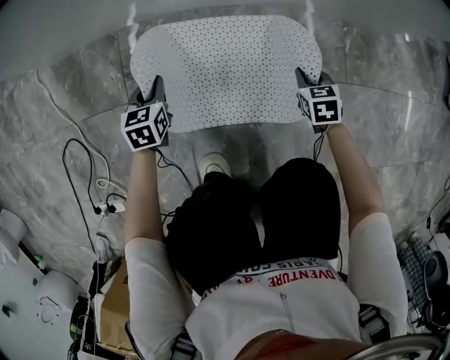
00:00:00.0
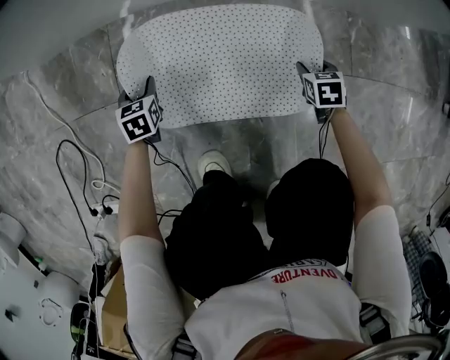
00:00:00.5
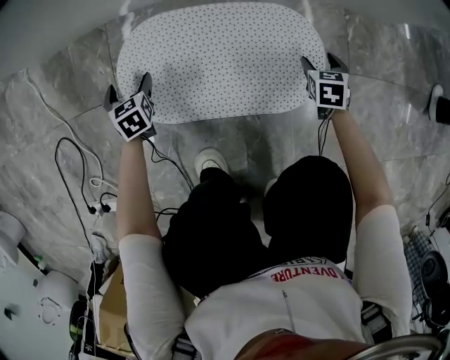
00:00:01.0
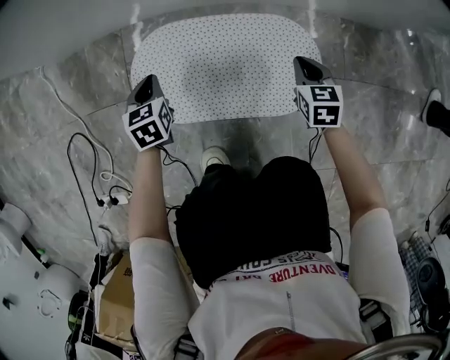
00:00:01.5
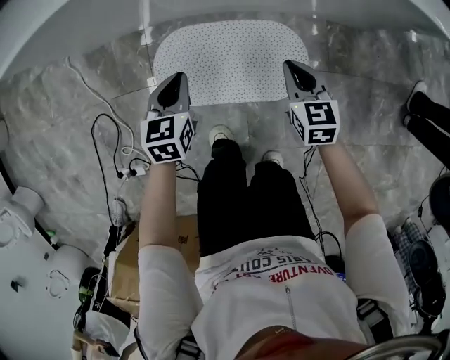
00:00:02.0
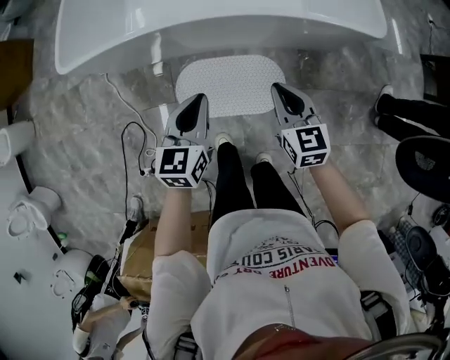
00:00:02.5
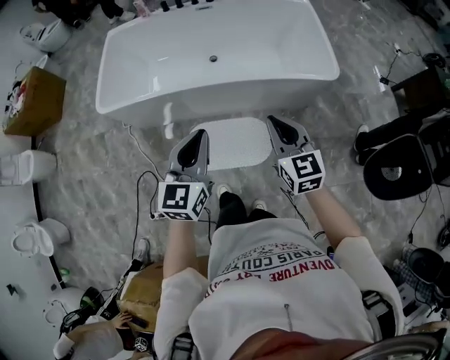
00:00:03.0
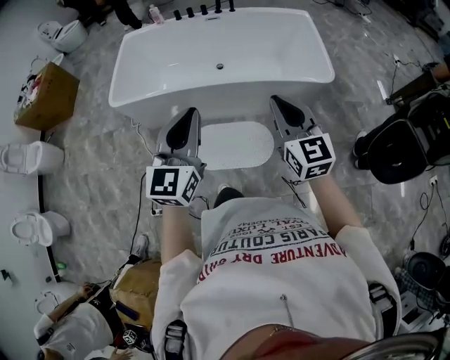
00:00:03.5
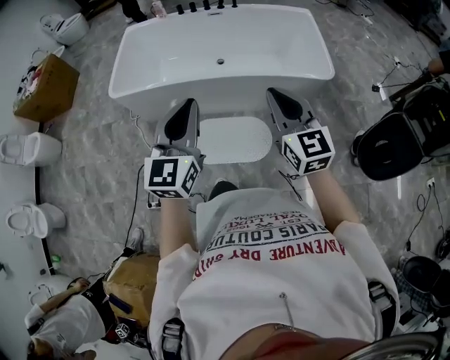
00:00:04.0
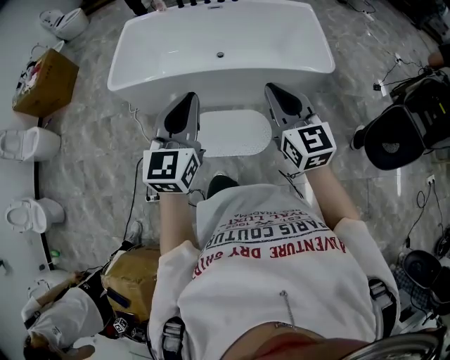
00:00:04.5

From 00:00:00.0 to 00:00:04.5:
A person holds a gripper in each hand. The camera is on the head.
From 00:00:00.0 to 00:00:02.0: The two grippers go approximately 30 cm upward. The left gripper opens and closes again, while the right gripper rotates about 20 degrees, and opens, then closes again.
From 00:00:02.0 to 00:00:04.5: The grippers both shift upward by roughly 70 cm. The right gripper tips its fingers upward by approximately 30 degrees, while the left gripper tilts its fingers roughly 40 degrees upward.

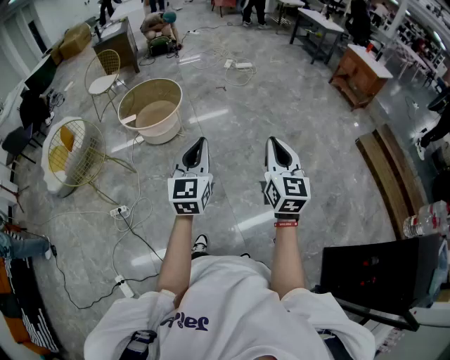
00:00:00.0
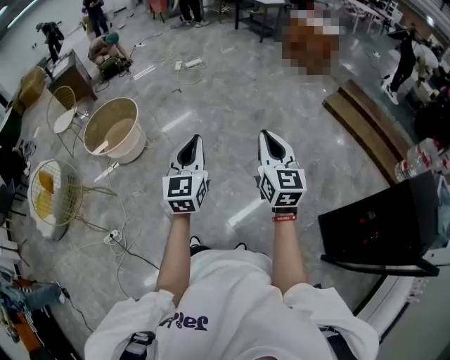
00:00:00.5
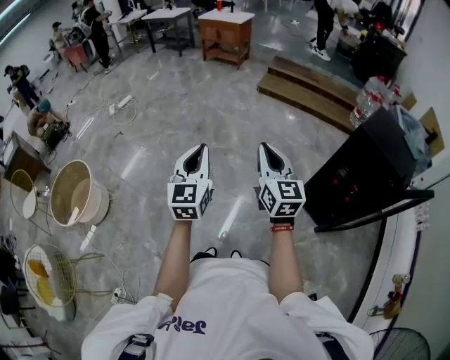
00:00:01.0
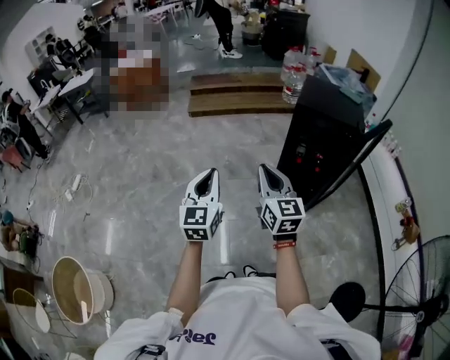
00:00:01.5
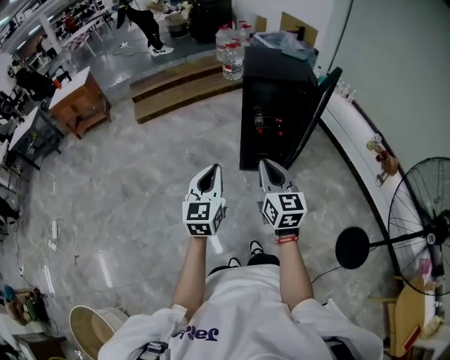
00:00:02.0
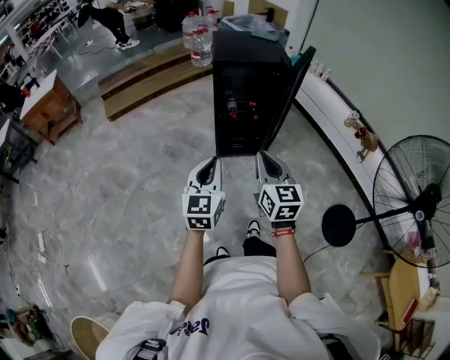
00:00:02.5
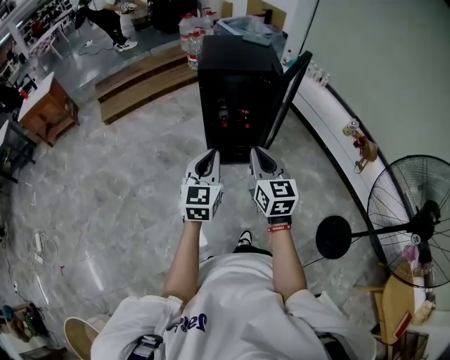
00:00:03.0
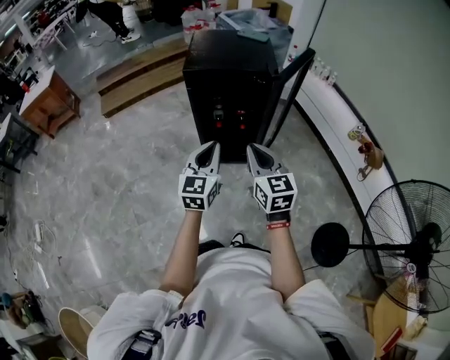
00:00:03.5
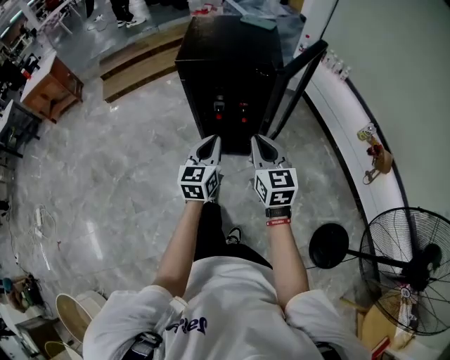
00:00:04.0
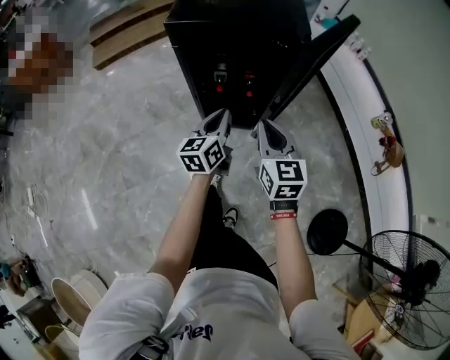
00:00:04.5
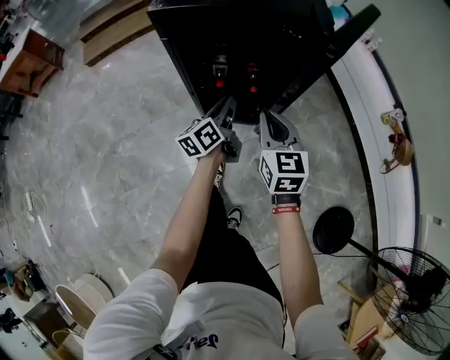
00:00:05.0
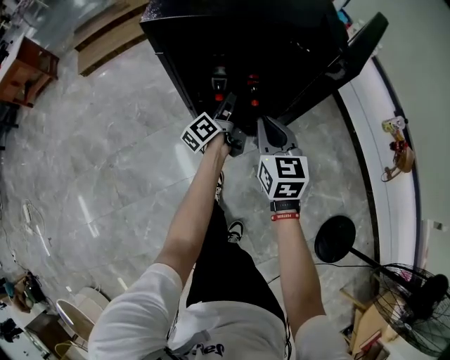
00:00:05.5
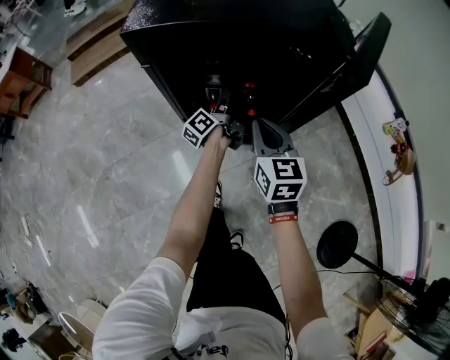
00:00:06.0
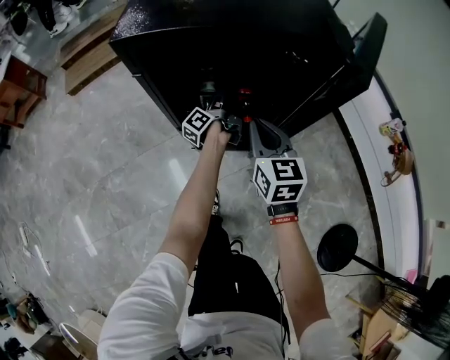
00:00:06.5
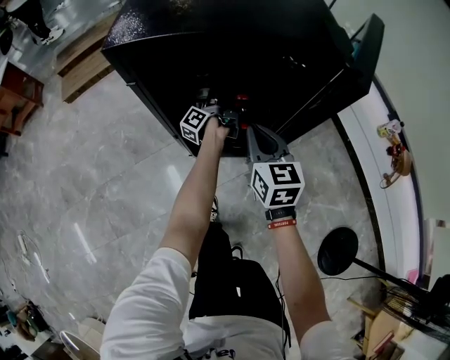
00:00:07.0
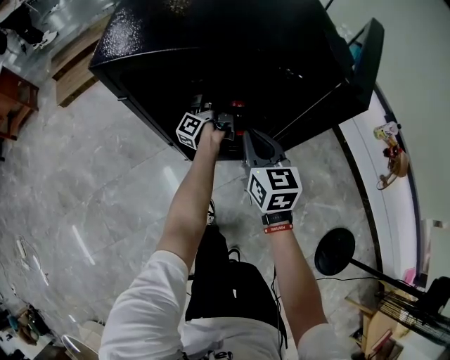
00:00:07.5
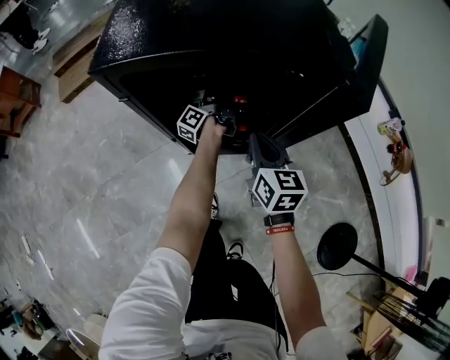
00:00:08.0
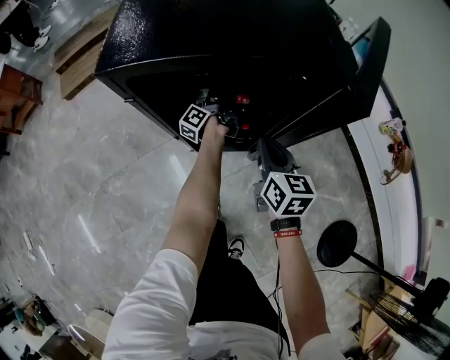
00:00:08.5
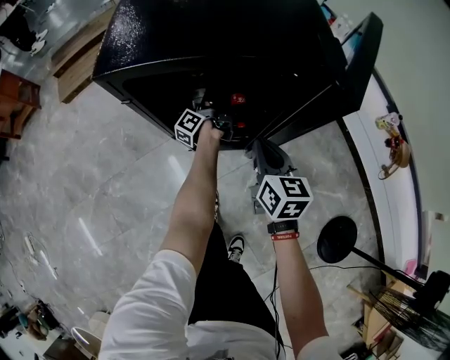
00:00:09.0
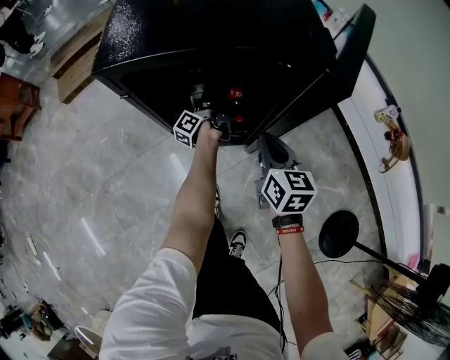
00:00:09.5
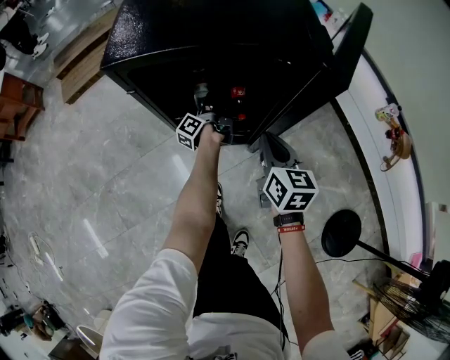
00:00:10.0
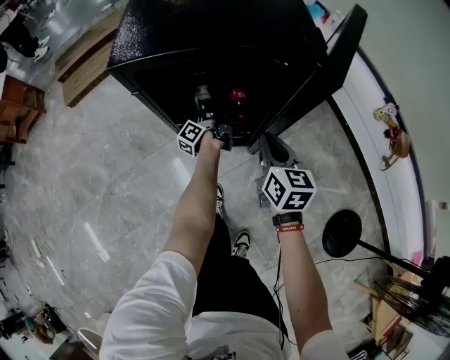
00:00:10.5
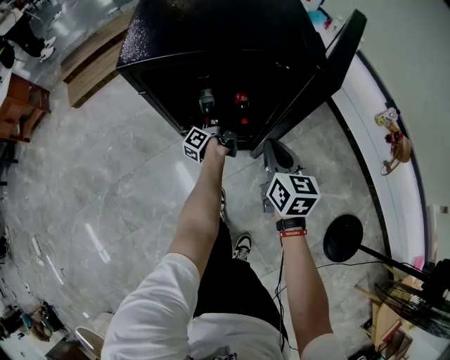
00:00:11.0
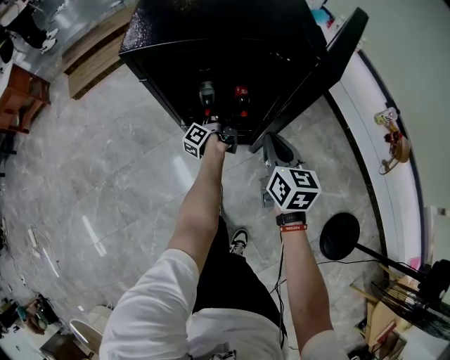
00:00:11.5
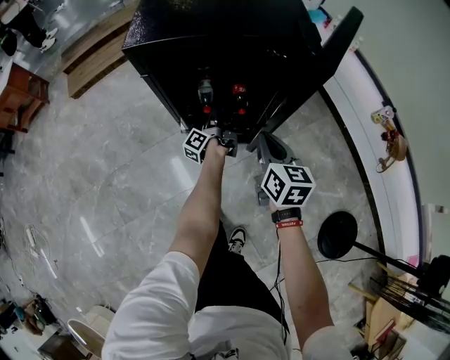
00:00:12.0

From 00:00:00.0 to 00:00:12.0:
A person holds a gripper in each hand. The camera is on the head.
From 00:00:00.0 to 00:00:02.0: The two grippers travel together, about 50 cm. The left gripper turns by about 90 degrees, while the right gripper rotates roughly 80 degrees.
From 00:00:02.0 to 00:00:04.0: Both grippers travel together forward, to the right and downward, roughly 40 cm.
From 00:00:04.0 to 00:00:06.0: The right gripper moves downward and forward, some 35 cm. Meanwhile the left gripper goes roughly 50 cm forward and downward, twists roughly 70 degrees counterclockwise, seen from behind, and opens.
From 00:00:06.0 to 00:00:08.0: The left gripper moves forward, approximately 10 cm, and closes its fingers; the right gripper moves approximately 5 cm.
From 00:00:08.0 to 00:00:10.0: The grippers both shift backward by approximately 5 cm.
From 00:00:10.0 to 00:00:12.0: The left gripper heads backward, covering roughly 10 cm. Meanwhile the right gripper is displaced backward by approximately 5 cm.

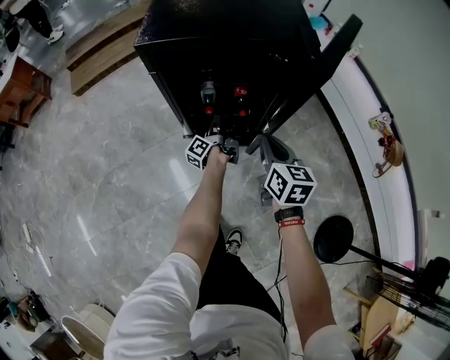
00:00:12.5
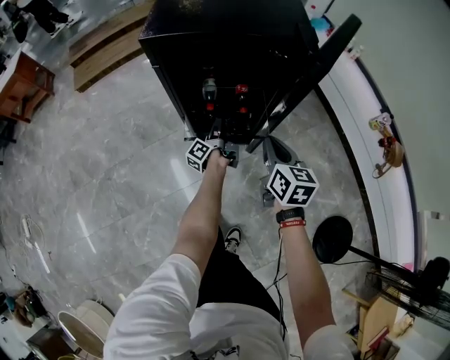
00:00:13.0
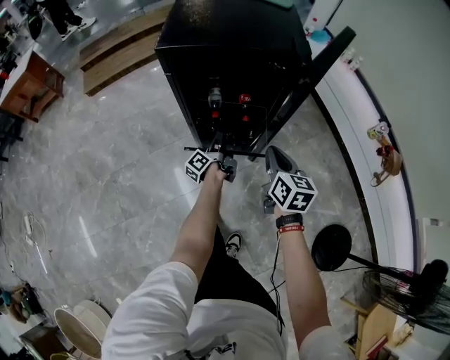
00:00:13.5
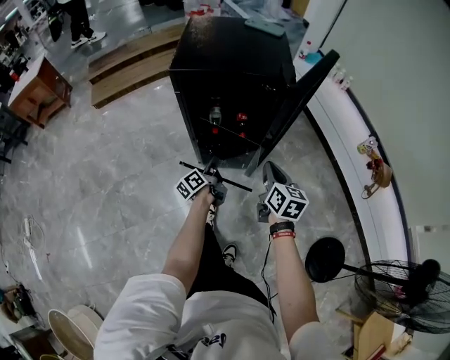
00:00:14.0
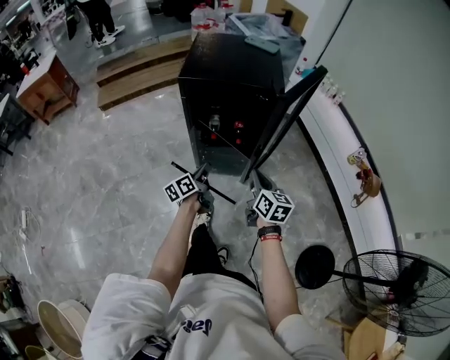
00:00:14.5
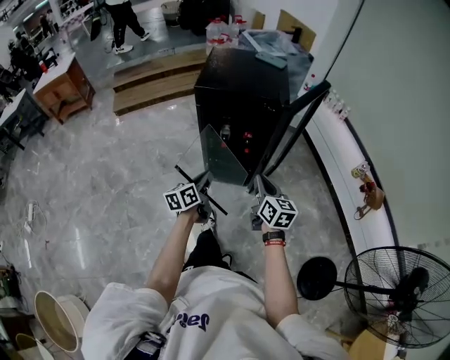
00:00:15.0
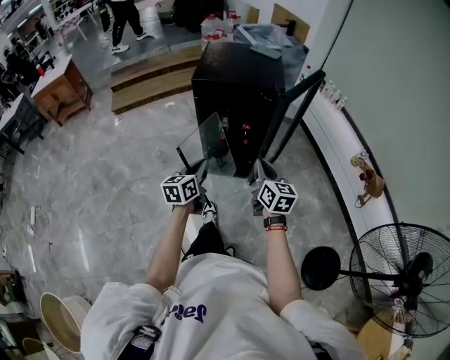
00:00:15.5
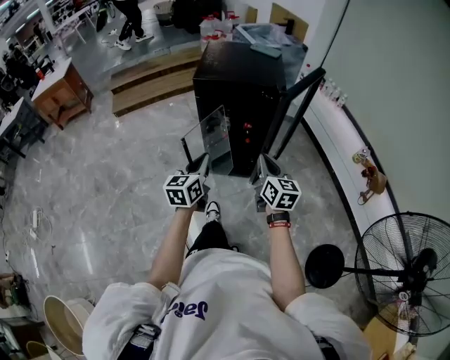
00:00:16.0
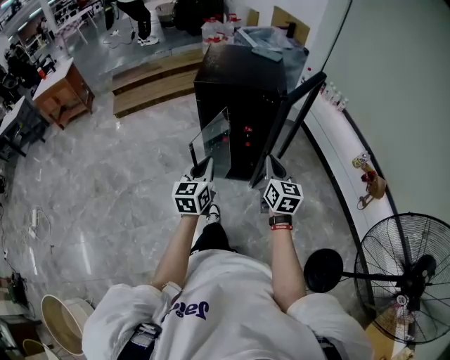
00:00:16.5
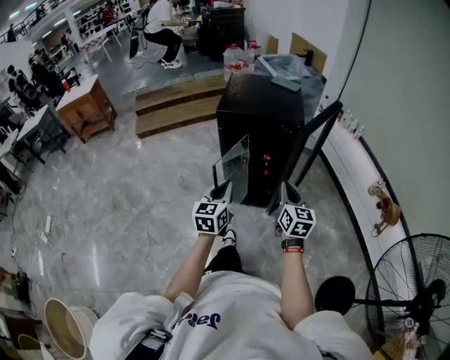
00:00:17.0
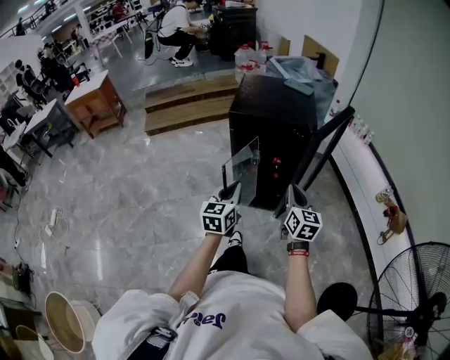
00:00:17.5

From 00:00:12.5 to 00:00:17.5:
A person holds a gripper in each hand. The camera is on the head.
From 00:00:12.5 to 00:00:15.0: The right gripper heads backward and upward, covering approximately 25 cm. The left gripper heads backward and upward, covering about 40 cm, and twists roughly 50 degrees clockwise, seen from behind.
From 00:00:15.0 to 00:00:17.5: The right gripper heads upward, covering roughly 5 cm. Meanwhile the left gripper is displaced upward by roughly 10 cm, and swivels approximately 30 degrees.

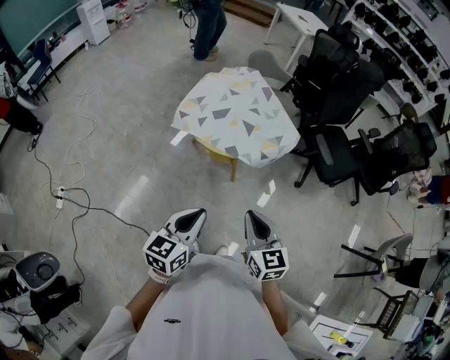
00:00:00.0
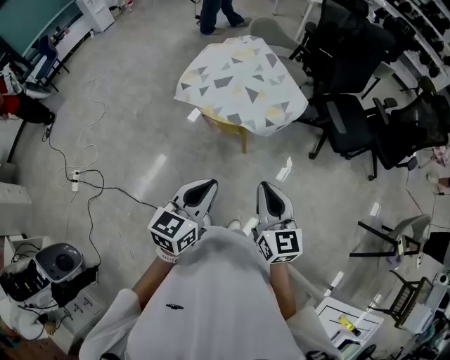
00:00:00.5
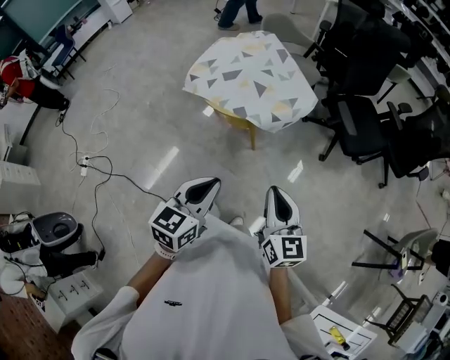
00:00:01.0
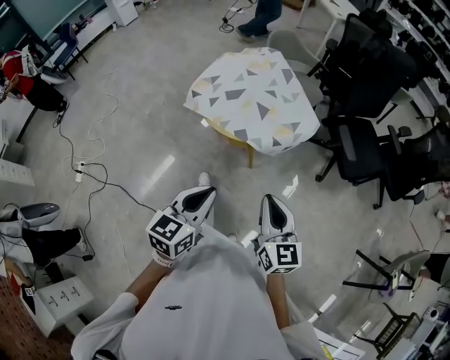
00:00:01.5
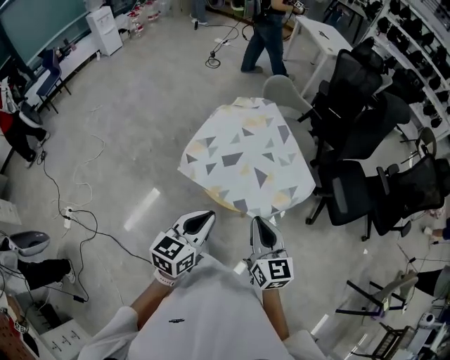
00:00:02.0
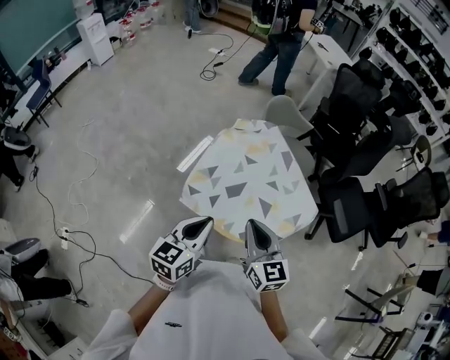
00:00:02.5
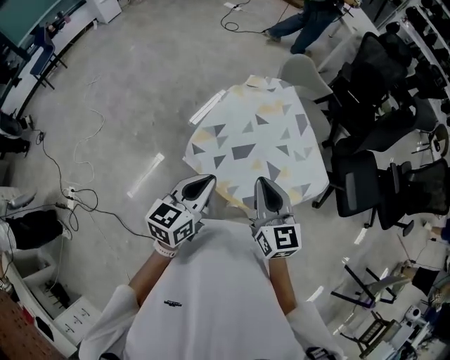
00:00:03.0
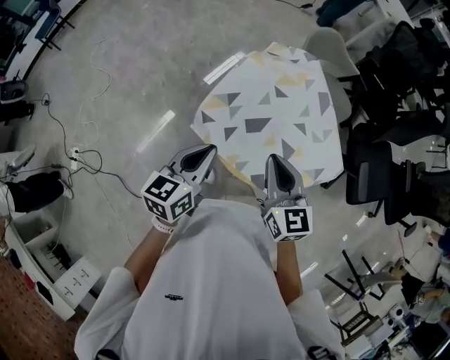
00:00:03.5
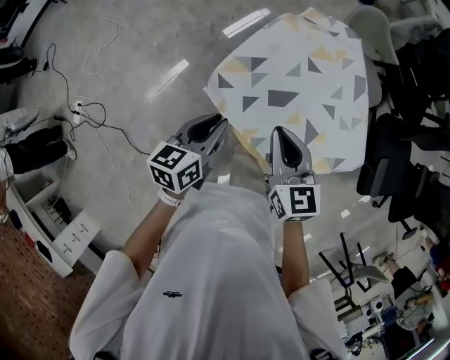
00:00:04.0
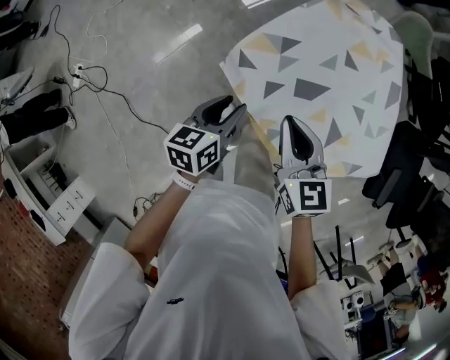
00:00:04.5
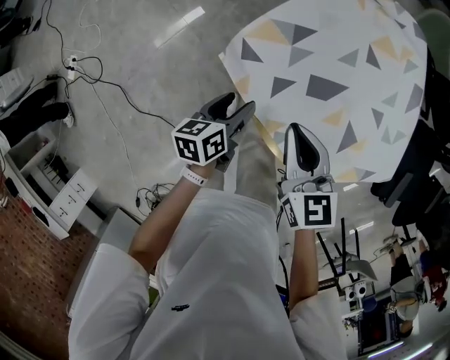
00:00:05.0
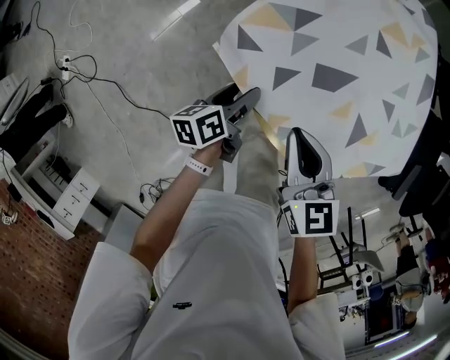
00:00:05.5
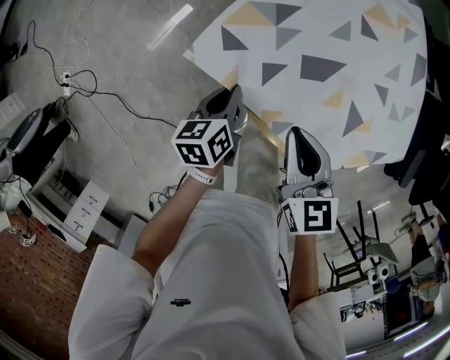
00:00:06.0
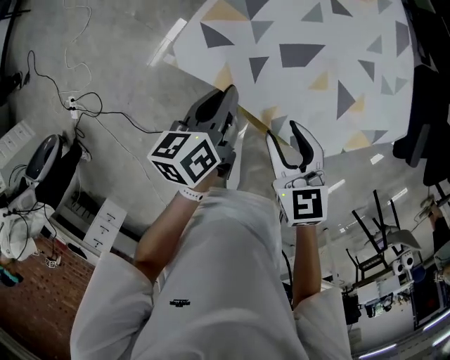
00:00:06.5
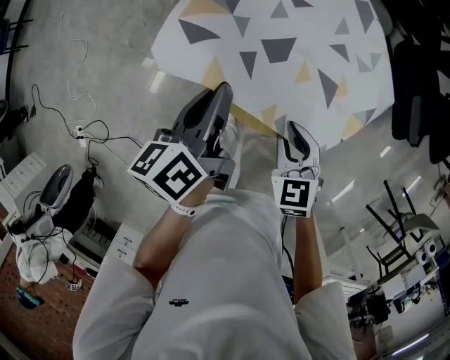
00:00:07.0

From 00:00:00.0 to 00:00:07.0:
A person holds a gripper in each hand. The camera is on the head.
From 00:00:00.0 to 00:00:02.0: Both grippers travel together forward, some 25 cm.
From 00:00:02.0 to 00:00:03.5: The right gripper shifts roughly 20 cm forward. The left gripper shifts about 20 cm forward and to the left.
From 00:00:03.5 to 00:00:05.0: The left gripper goes roughly 30 cm downward, swivels about 40 degrees, and opens, while the right gripper goes some 20 cm downward, and rotates about 20 degrees.
From 00:00:05.0 to 00:00:07.0: The right gripper travels to the right and backward by about 10 cm, swivels about 30 degrees, and opens up, while the left gripper travels upward by some 20 cm, and closes up.
